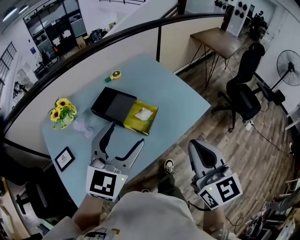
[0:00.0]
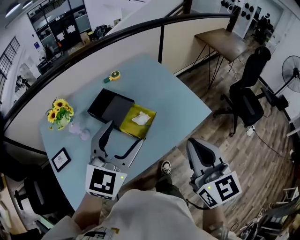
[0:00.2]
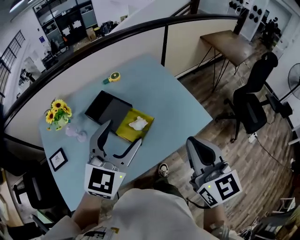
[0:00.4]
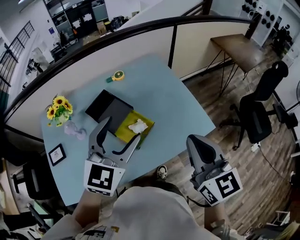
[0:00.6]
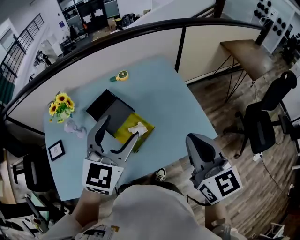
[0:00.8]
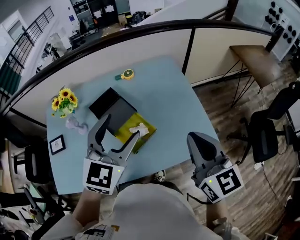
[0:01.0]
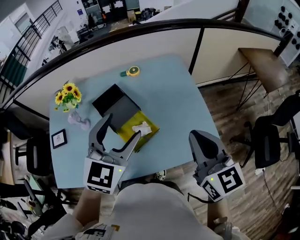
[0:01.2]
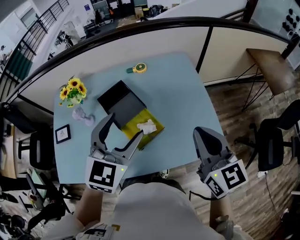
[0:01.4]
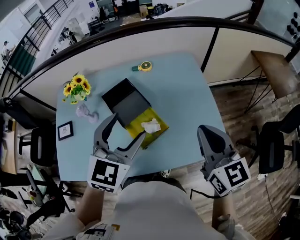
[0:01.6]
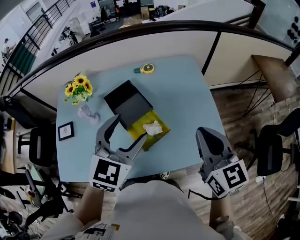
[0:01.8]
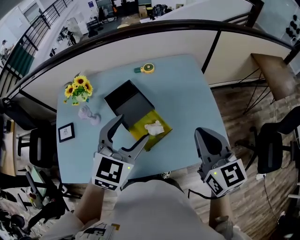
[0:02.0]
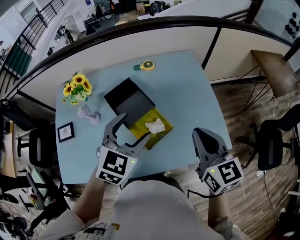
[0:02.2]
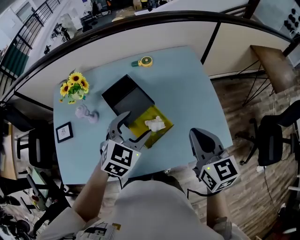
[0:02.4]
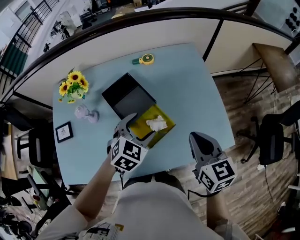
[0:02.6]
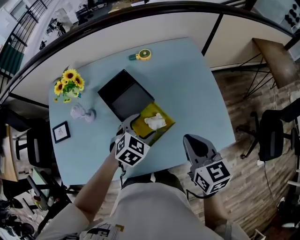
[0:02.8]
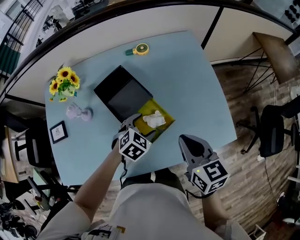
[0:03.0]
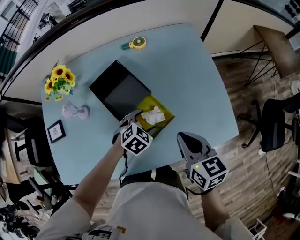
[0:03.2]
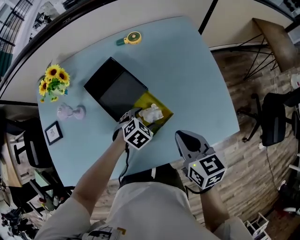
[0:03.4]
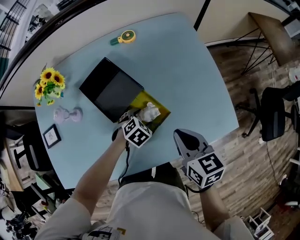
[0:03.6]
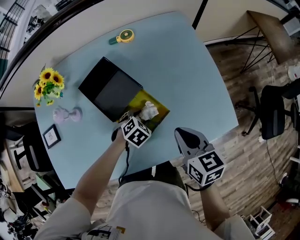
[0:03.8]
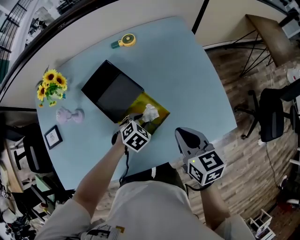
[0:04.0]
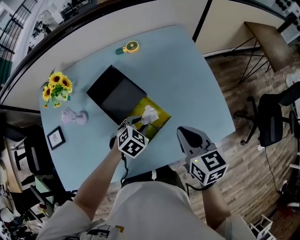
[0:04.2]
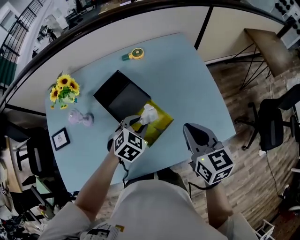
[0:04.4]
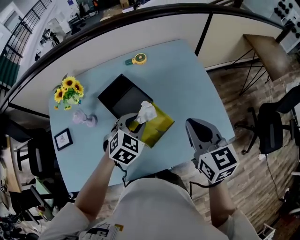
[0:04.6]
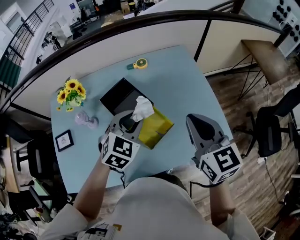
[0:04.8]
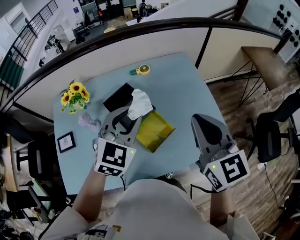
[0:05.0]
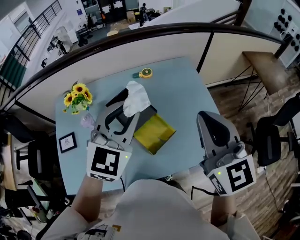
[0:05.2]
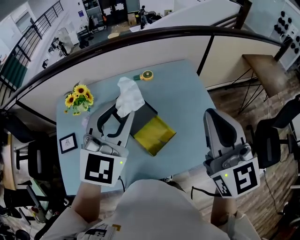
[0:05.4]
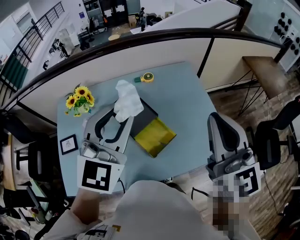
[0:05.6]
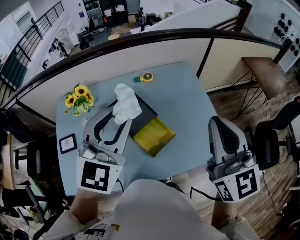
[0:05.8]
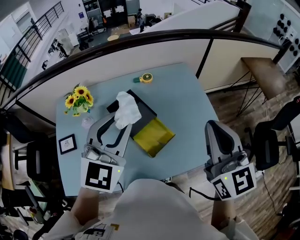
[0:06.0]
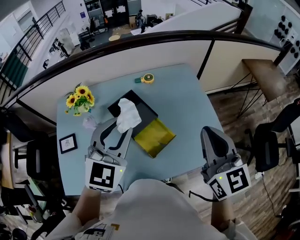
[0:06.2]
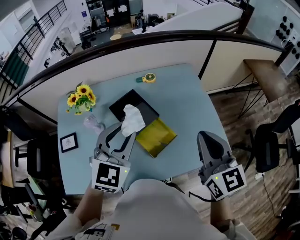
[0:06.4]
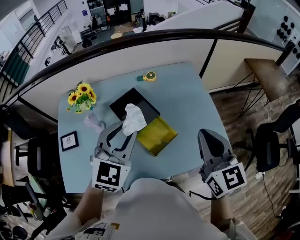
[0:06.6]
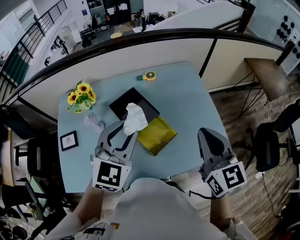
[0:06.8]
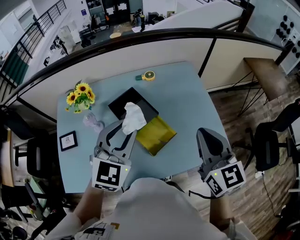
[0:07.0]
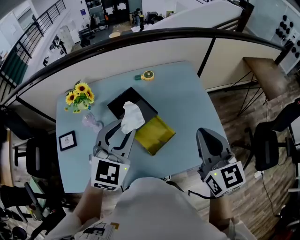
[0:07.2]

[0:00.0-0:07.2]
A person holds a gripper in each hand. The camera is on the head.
0:00.0 to 0:01.4: The left gripper shifts by approximately 20 cm, and swivels some 30 degrees. The right gripper shifts by about 30 cm, and changes its angle by about 30 degrees.
0:01.4 to 0:02.8: The left gripper shifts about 25 cm downward, and turns by some 30 degrees. The right gripper travels downward and to the left by about 15 cm.
0:02.8 to 0:04.4: The right gripper travels downward and back again, approximately 10 cm each way; the left gripper reaches approximately 15 cm downward, then returns, and closes its fingers.
0:04.4 to 0:05.8: Both grippers move upward, about 30 cm. The left gripper tips its fingers upward by some 40 degrees. The right gripper changes its angle by roughly 30 degrees.
0:05.8 to 0:07.2: Both grippers travel together downward, approximately 10 cm.

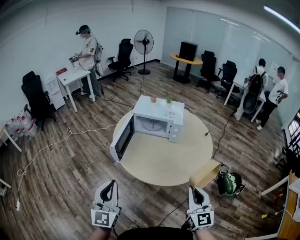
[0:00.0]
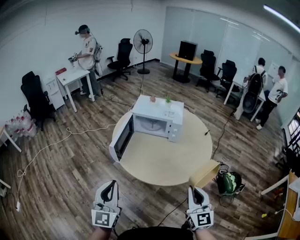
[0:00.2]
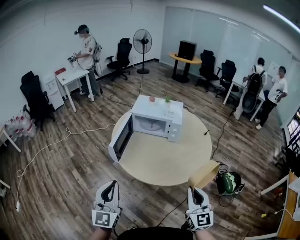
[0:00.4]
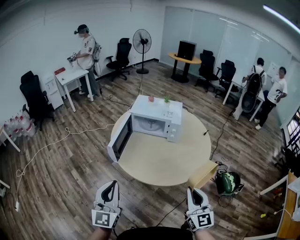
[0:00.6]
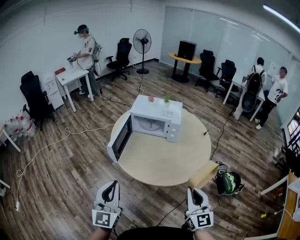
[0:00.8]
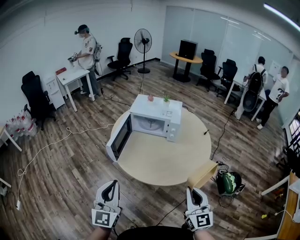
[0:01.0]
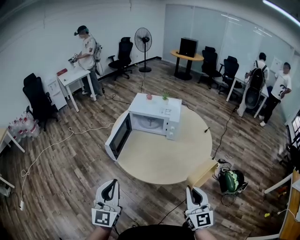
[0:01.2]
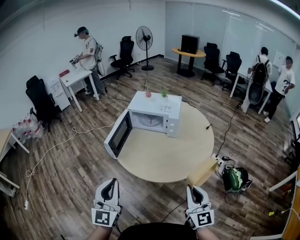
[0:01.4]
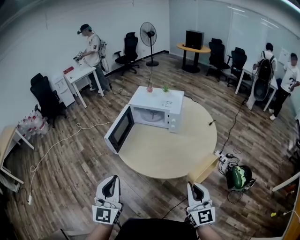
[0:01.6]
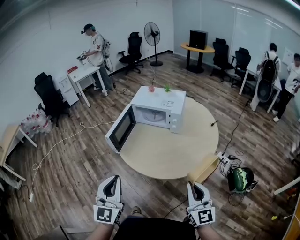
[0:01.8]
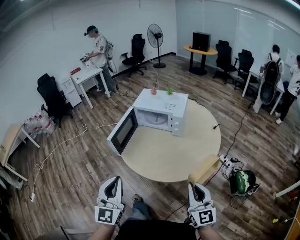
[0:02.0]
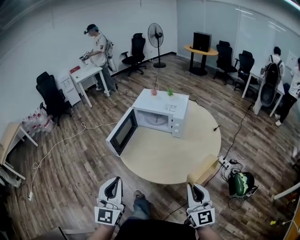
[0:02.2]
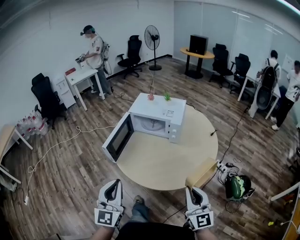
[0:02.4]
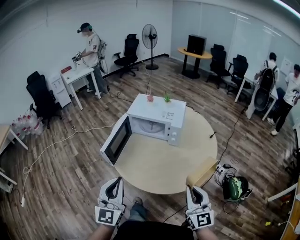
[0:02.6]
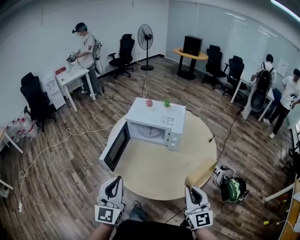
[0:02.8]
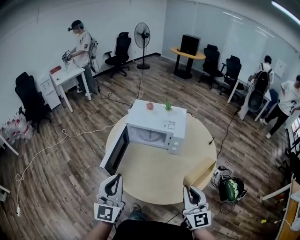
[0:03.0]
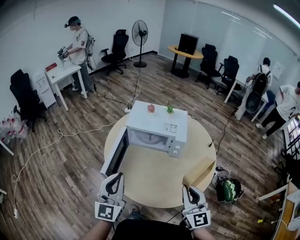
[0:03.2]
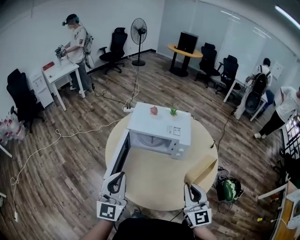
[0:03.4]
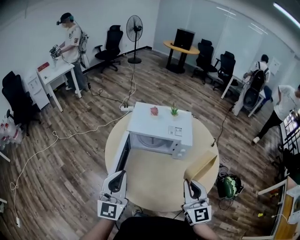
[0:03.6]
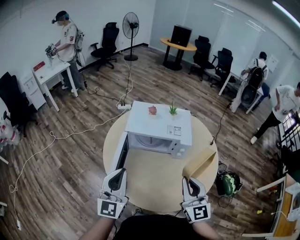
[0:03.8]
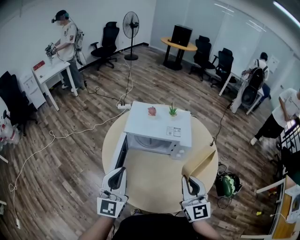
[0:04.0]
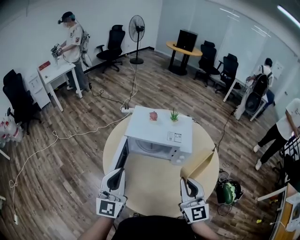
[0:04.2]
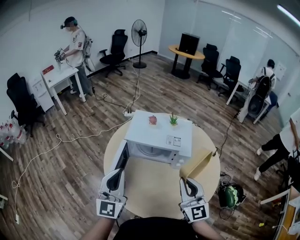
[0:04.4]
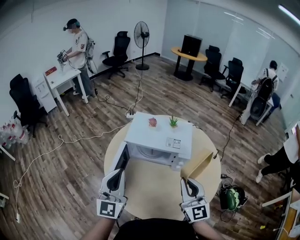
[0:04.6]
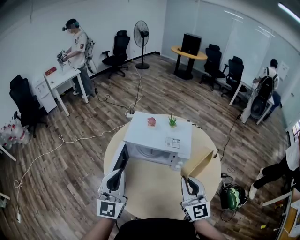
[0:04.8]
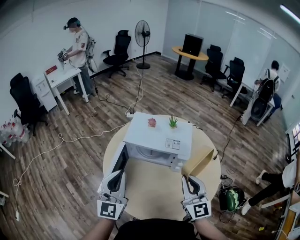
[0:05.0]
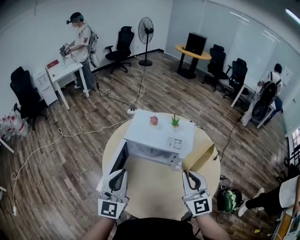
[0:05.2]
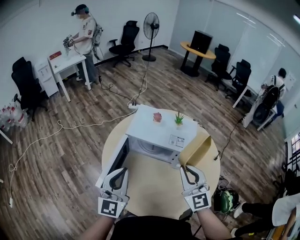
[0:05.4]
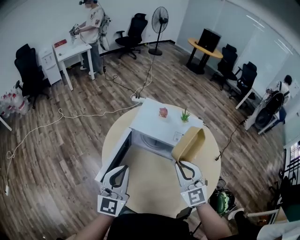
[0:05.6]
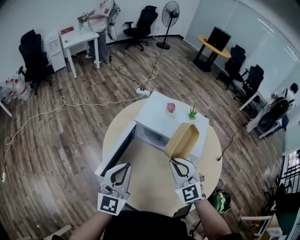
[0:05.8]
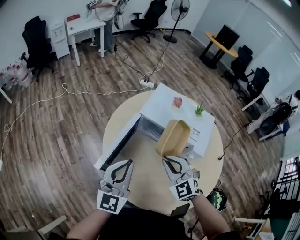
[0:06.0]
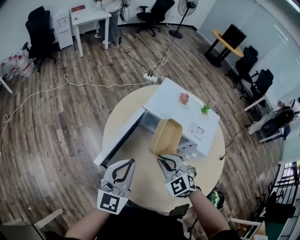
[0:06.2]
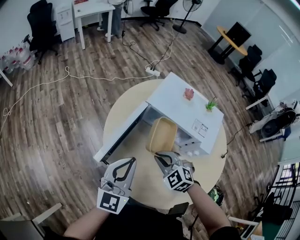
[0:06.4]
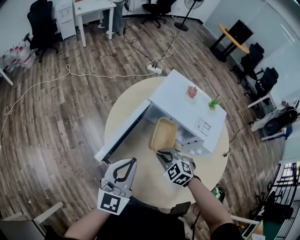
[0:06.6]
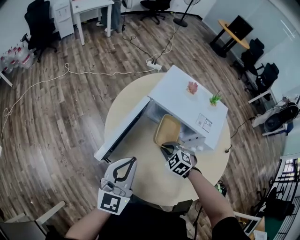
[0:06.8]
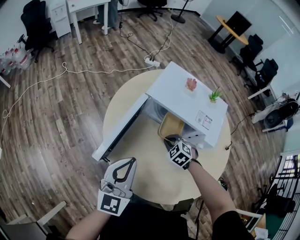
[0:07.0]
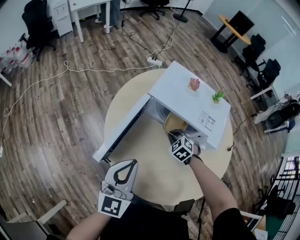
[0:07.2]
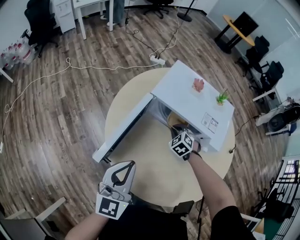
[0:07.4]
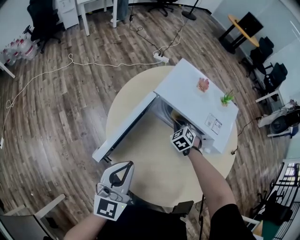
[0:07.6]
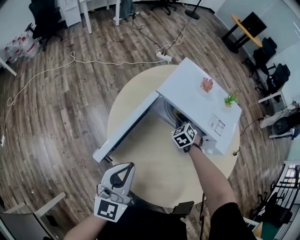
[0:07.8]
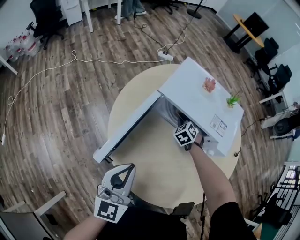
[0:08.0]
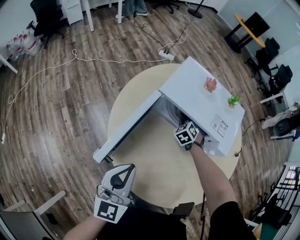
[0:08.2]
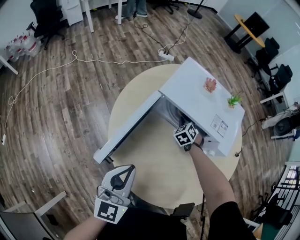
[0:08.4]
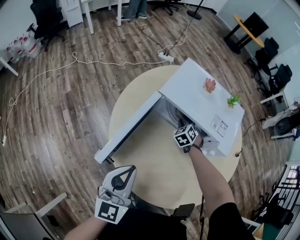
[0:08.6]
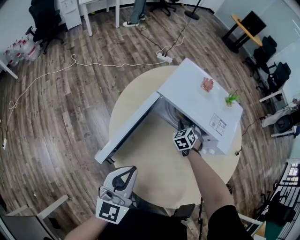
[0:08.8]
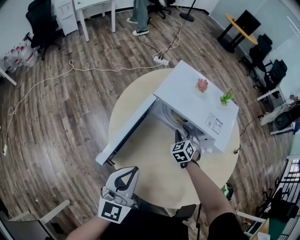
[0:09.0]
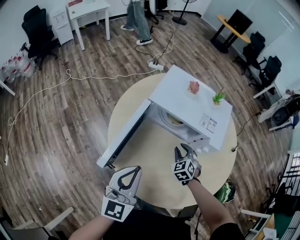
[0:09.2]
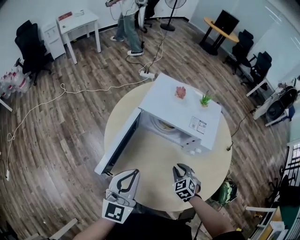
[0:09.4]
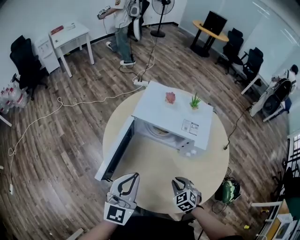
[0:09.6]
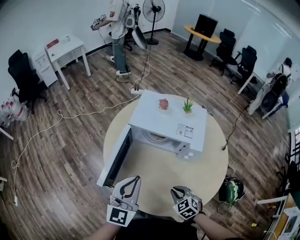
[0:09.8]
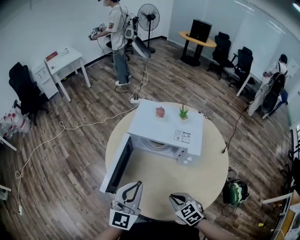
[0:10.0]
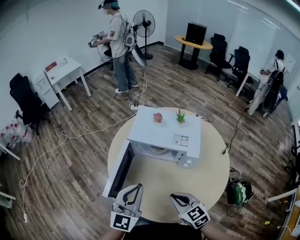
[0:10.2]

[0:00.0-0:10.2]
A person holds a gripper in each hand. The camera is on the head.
0:00.0 to 0:01.4: Both grippers move to the right, approximately 5 cm.
0:01.4 to 0:03.0: Both grippers move forward, roughly 20 cm.
0:03.0 to 0:04.4: The grippers both shift forward by some 15 cm.
0:04.4 to 0:05.8: The right gripper is displaced forward, to the left and downward by about 15 cm, and changes its angle by approximately 40 degrees. The left gripper shifts some 5 cm downward.
0:05.8 to 0:07.2: The right gripper is displaced downward and forward by about 30 cm, and points its fingers approximately 40 degrees further downward. The left gripper heads downward, covering about 5 cm.
0:07.2 to 0:08.8: The right gripper heads forward, covering approximately 10 cm, rotates approximately 20 degrees, and opens its fingers.
0:08.8 to 0:10.2: The right gripper shifts some 40 cm backward and upward, turns by about 40 degrees, and closes its fingers. Meanwhile the left gripper goes roughly 10 cm upward and to the right.

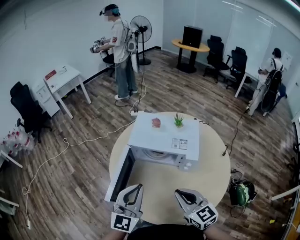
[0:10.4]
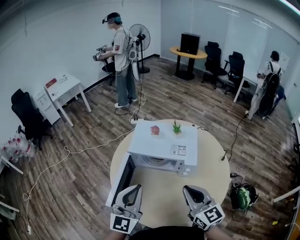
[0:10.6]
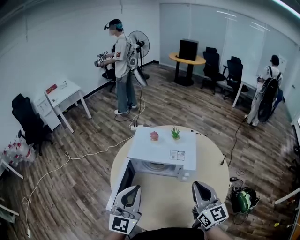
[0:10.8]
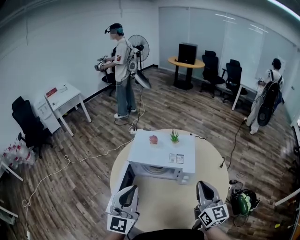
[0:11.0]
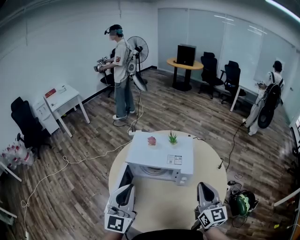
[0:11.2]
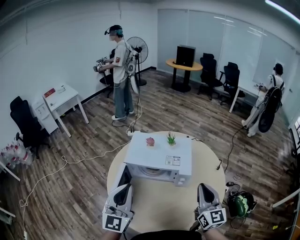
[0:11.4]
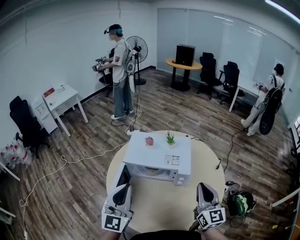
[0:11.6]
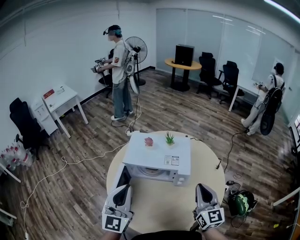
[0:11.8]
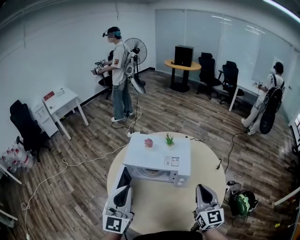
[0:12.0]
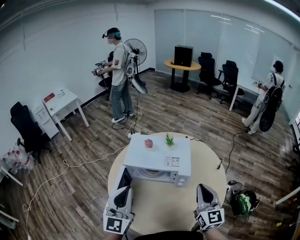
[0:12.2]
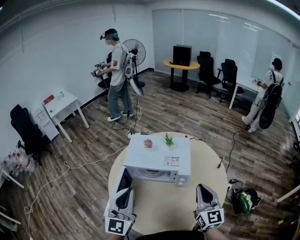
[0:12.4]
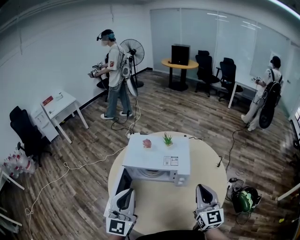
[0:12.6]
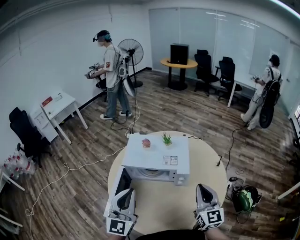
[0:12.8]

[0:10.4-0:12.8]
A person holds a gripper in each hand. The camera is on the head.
0:10.4 to 0:11.6: The left gripper travels upward by roughly 5 cm. Meanwhile the right gripper shifts roughly 15 cm to the right and upward, and rotates about 40 degrees.
0:11.6 to 0:12.8: There are only small adjustments of the grippers.

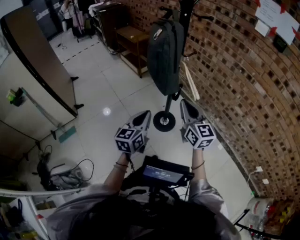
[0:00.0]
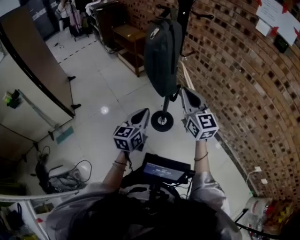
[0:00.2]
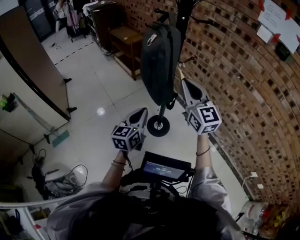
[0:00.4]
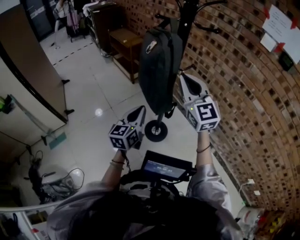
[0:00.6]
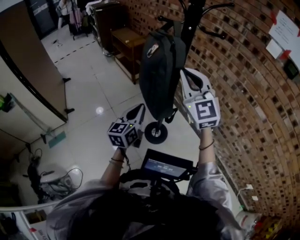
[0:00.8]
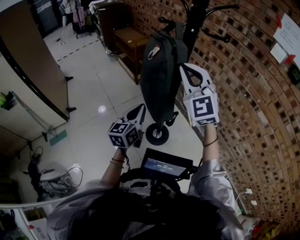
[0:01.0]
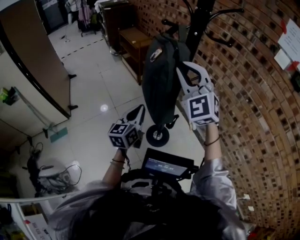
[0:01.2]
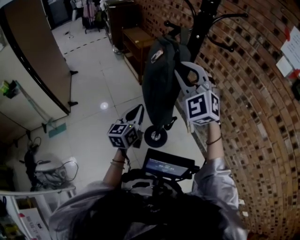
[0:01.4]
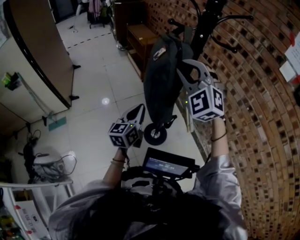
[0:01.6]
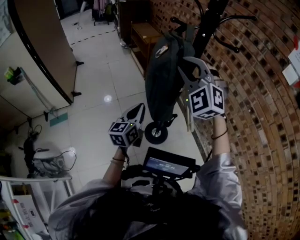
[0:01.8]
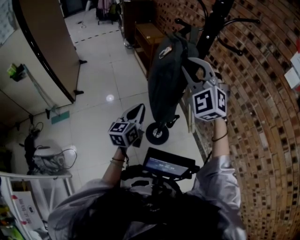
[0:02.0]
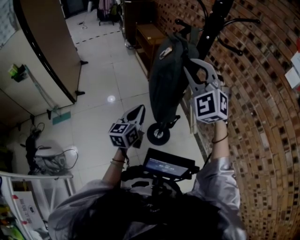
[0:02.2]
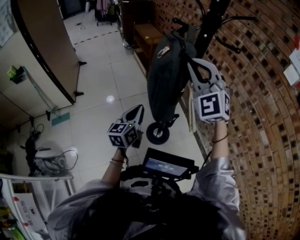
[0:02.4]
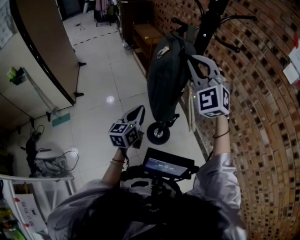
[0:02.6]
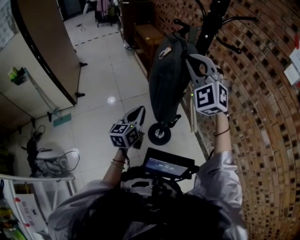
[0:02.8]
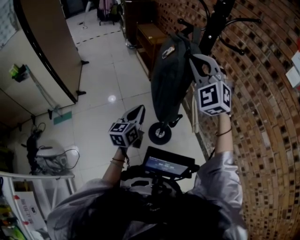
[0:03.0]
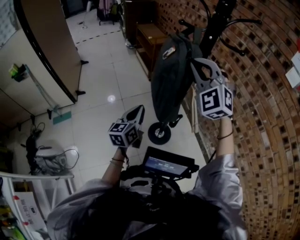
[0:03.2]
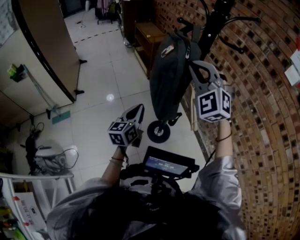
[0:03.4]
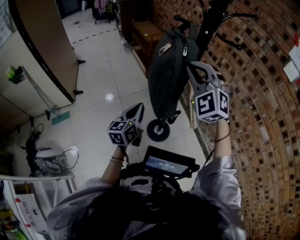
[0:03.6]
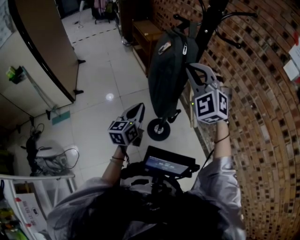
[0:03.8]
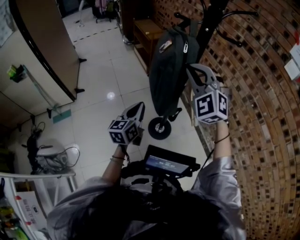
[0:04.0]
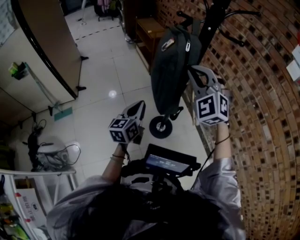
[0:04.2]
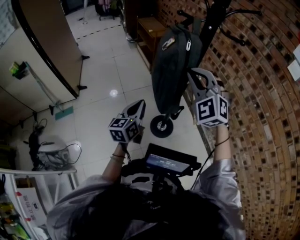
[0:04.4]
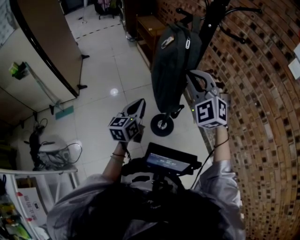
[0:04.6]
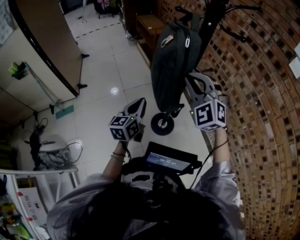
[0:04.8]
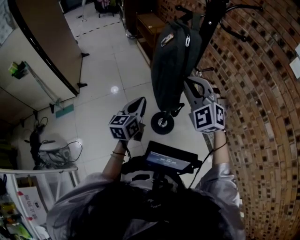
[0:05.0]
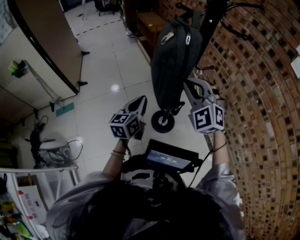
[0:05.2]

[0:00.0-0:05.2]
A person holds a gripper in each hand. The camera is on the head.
0:00.0 to 0:01.8: The left gripper shifts about 20 cm forward. The right gripper shifts about 30 cm forward and upward, rotates around the line of its fingers by approximately 70 degrees, counterclockwise from behind, and opens its fingers.
0:01.8 to 0:03.4: The grippers make only small movements.
0:03.4 to 0:05.2: The right gripper shifts approximately 10 cm downward.
